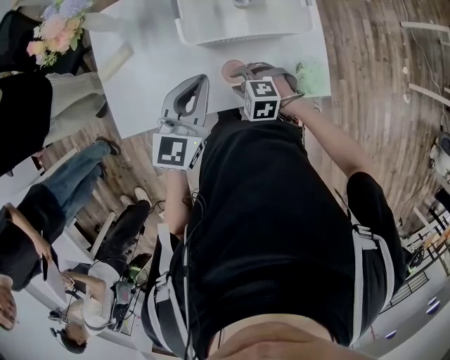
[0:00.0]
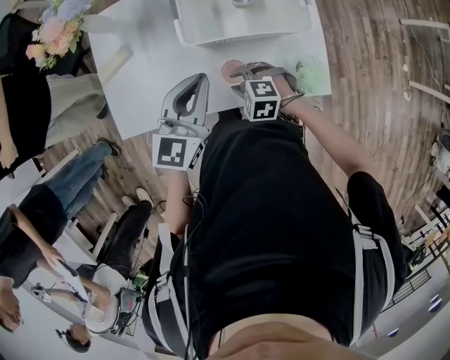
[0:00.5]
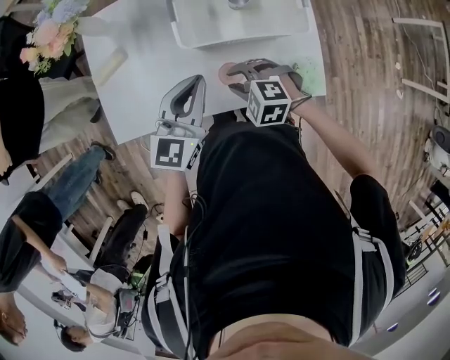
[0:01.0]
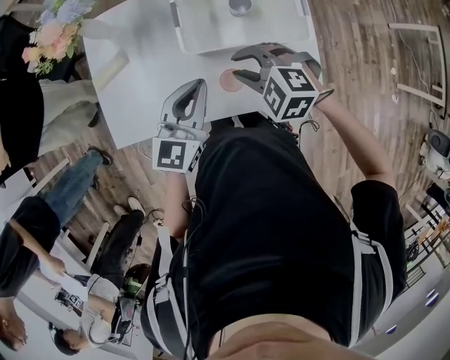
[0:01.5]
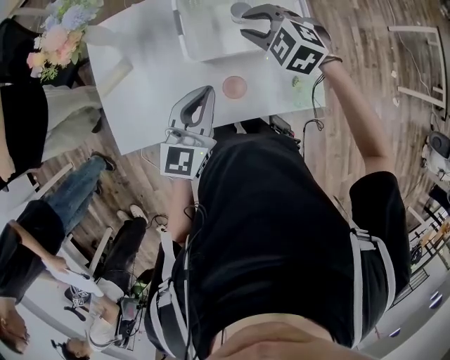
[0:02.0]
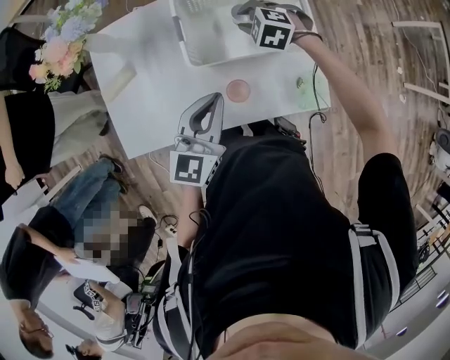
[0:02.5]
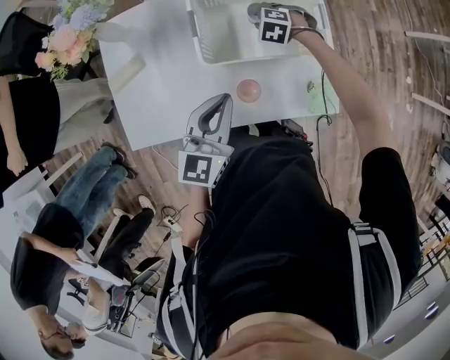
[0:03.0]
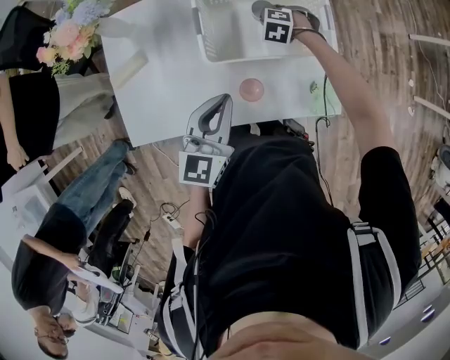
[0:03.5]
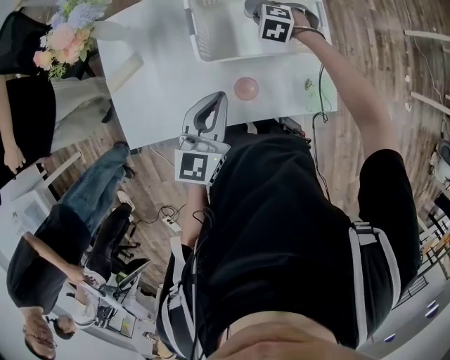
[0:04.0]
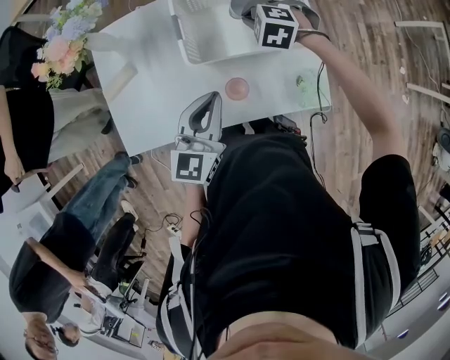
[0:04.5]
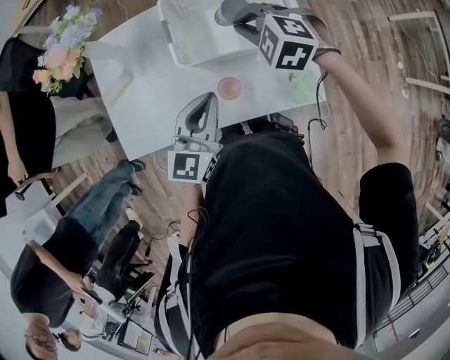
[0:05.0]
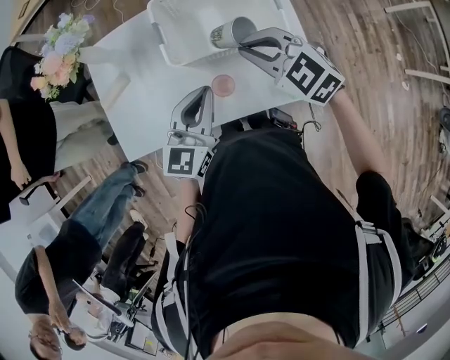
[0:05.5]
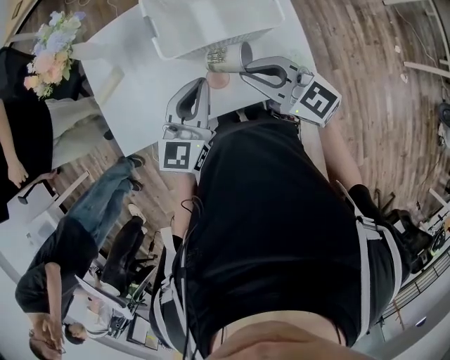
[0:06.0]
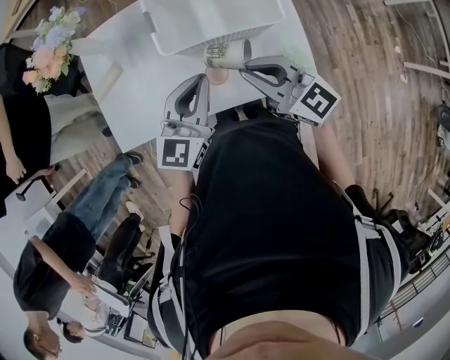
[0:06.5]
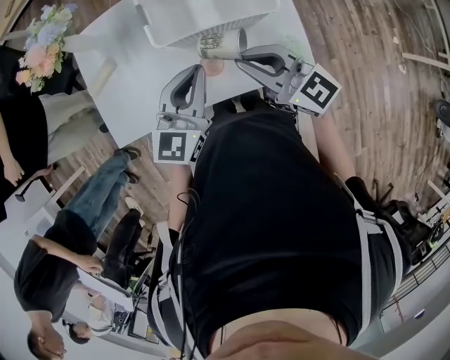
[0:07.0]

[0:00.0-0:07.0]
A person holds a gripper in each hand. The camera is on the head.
0:00.0 to 0:02.0: The right gripper goes about 25 cm forward, upward and to the right.
0:02.0 to 0:03.5: The right gripper travels downward by about 20 cm, swivels some 20 degrees, and closes its fingers.
0:03.5 to 0:05.0: The left gripper ends up approximately 5 cm from where it was. The right gripper heads upward, covering approximately 25 cm, and changes its angle by roughly 20 degrees.
0:05.0 to 0:07.0: The right gripper heads backward, covering approximately 15 cm, and angles its fingers upward, by about 50 degrees.

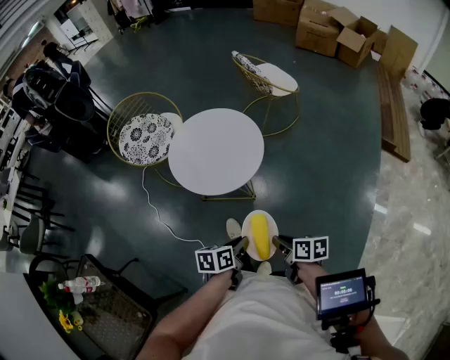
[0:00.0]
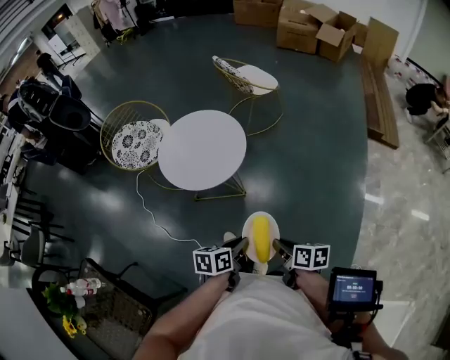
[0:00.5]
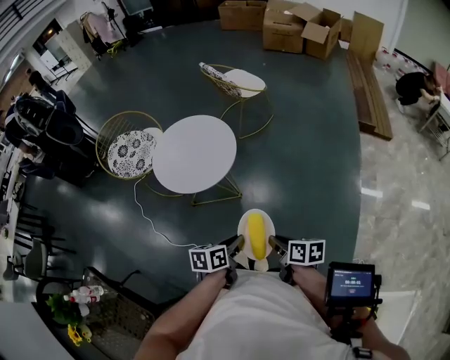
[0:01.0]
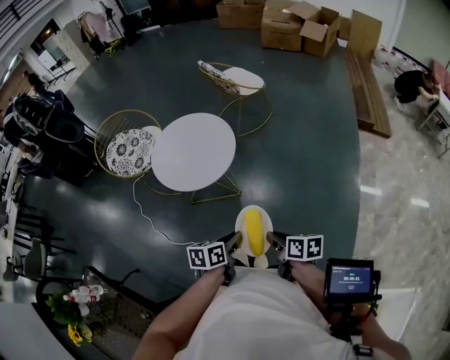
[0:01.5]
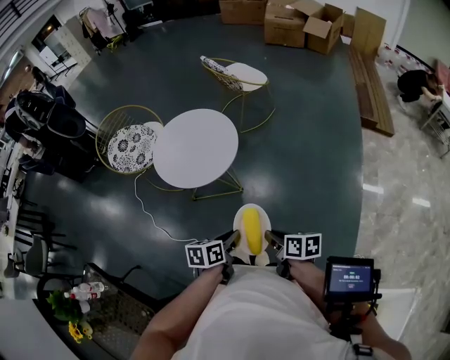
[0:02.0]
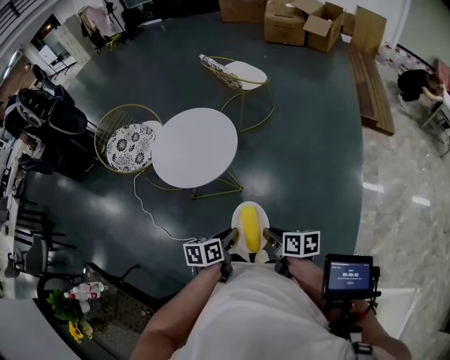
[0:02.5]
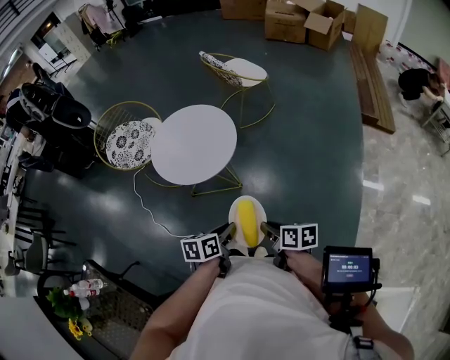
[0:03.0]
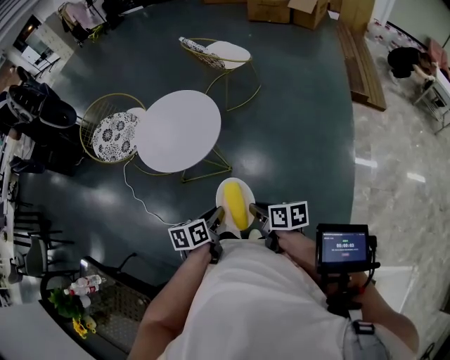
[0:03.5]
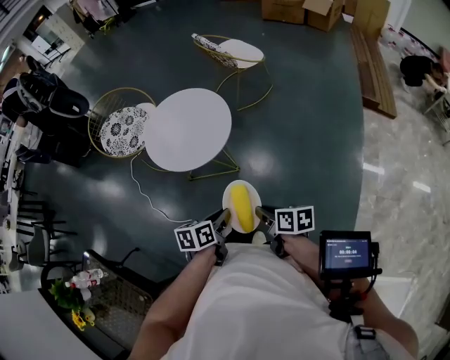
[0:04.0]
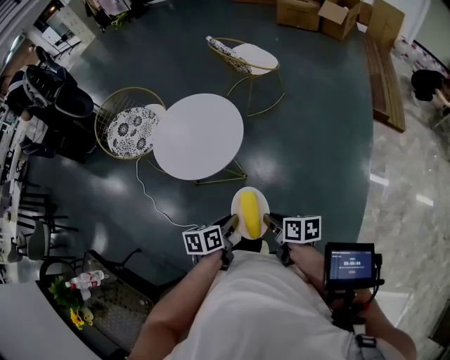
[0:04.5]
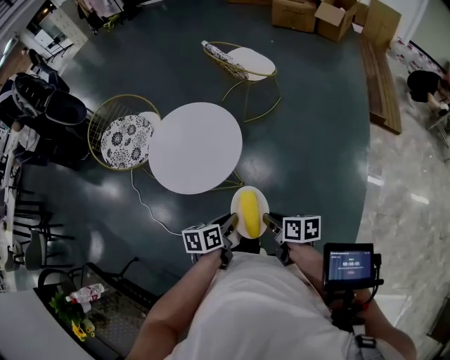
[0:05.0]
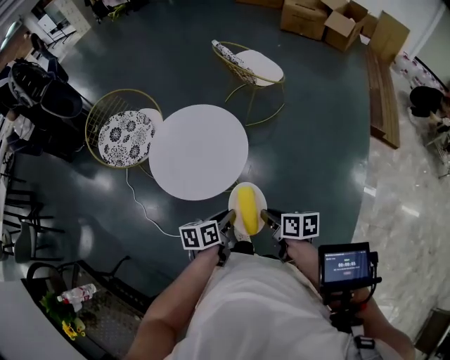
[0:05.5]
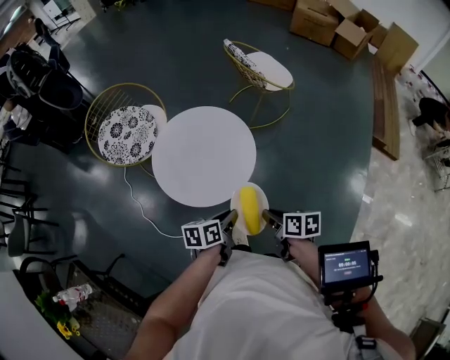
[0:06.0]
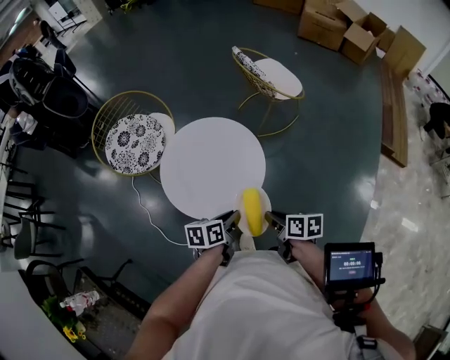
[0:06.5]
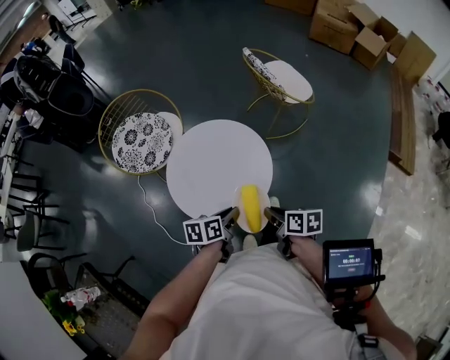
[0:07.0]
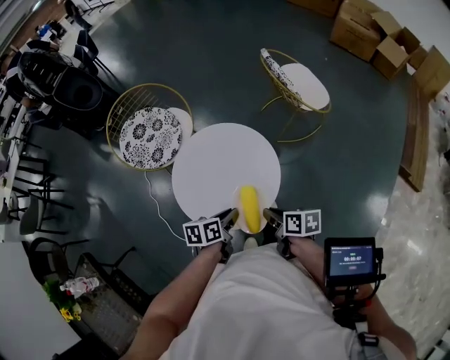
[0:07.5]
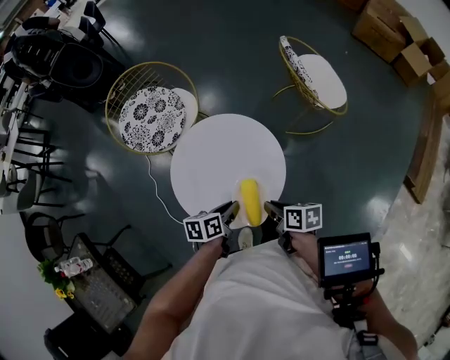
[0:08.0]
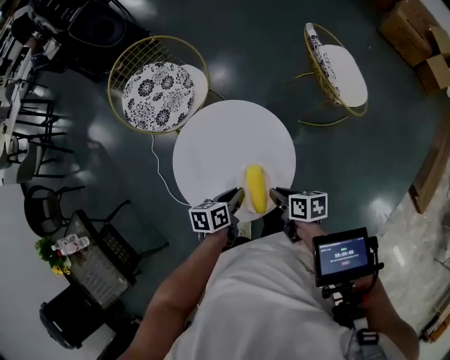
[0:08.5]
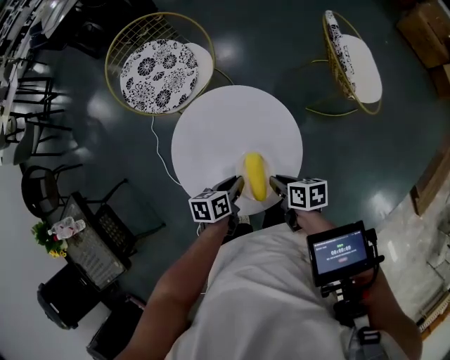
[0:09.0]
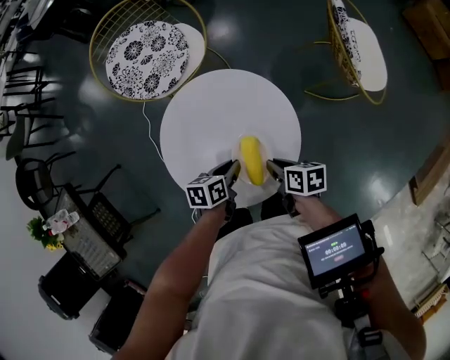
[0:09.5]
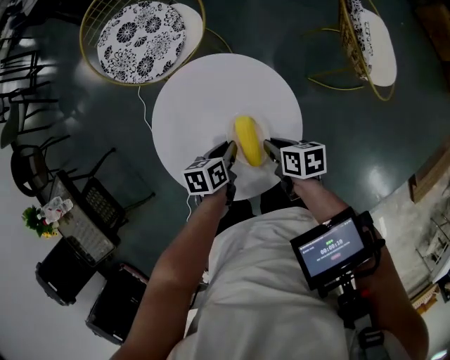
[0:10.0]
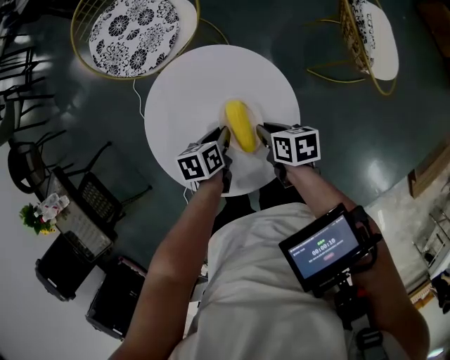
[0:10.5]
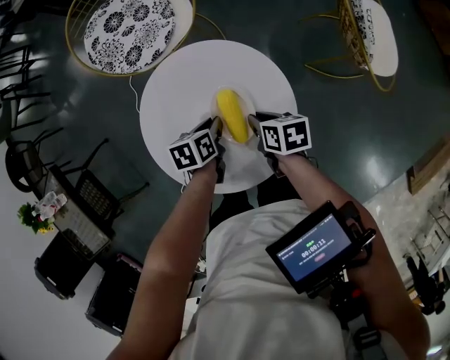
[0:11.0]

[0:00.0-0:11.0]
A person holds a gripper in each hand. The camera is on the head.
0:00.0 to 0:02.0: The two grippers go about 5 cm backward.
0:02.0 to 0:03.5: The grippers make only small movements.
0:03.5 to 0:05.5: The two grippers go roughly 20 cm forward.
0:05.5 to 0:07.5: Both grippers move forward, approximately 20 cm.
0:07.5 to 0:09.0: The left gripper goes roughly 10 cm downward and forward. The right gripper heads forward and downward, covering about 15 cm, and rotates approximately 20 degrees.
0:09.0 to 0:11.0: The grippers both shift forward and downward by some 10 cm.

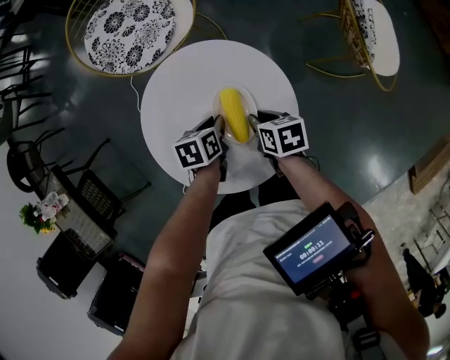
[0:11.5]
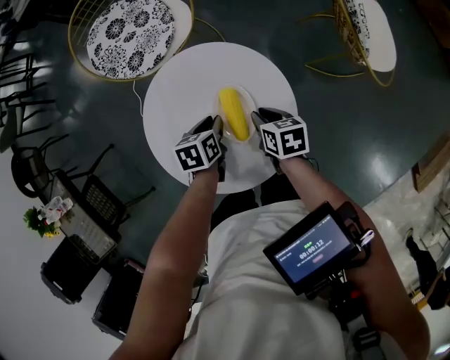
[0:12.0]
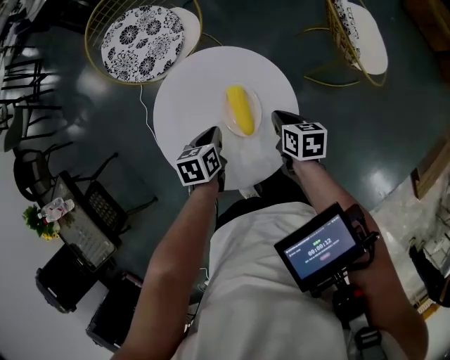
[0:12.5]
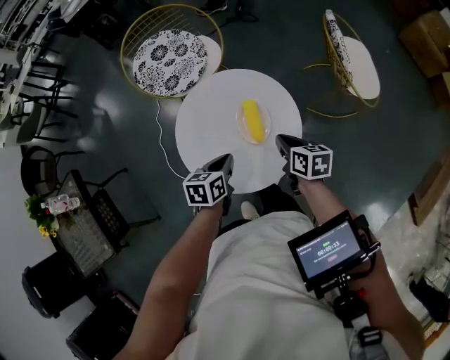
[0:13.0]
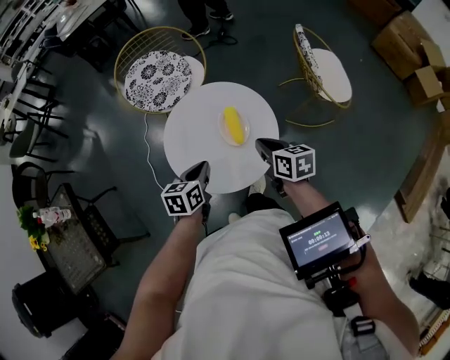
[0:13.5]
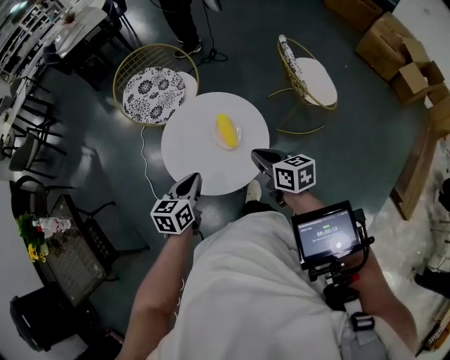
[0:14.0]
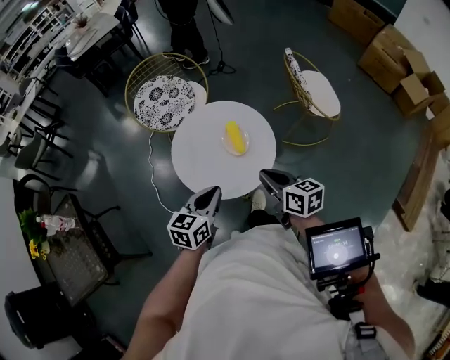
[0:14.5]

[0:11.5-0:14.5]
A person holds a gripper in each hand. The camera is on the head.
0:11.5 to 0:13.0: The left gripper shifts some 15 cm backward and upward; the right gripper heads upward and backward, covering roughly 15 cm, and turns by roughly 20 degrees.
0:13.0 to 0:14.5: The left gripper goes roughly 20 cm upward and backward, and turns by approximately 30 degrees. Meanwhile the right gripper travels backward and upward by some 20 cm.

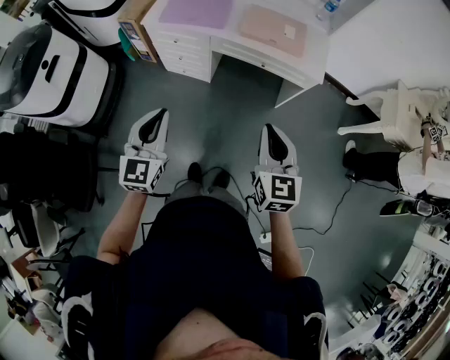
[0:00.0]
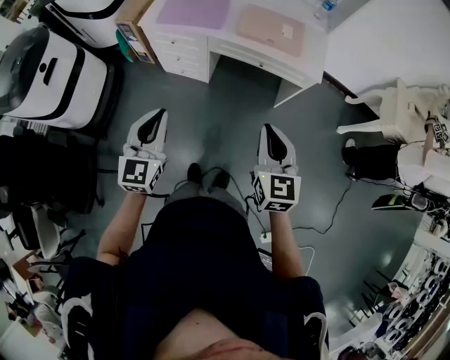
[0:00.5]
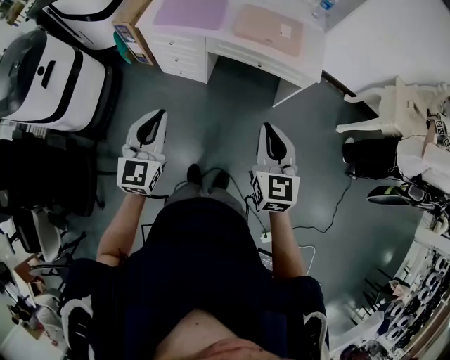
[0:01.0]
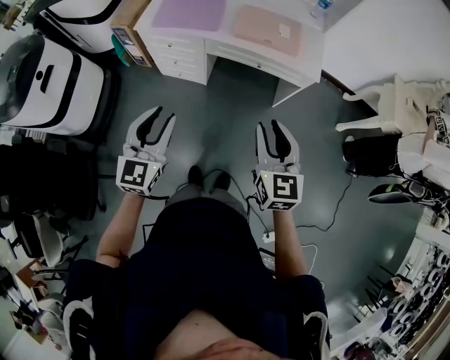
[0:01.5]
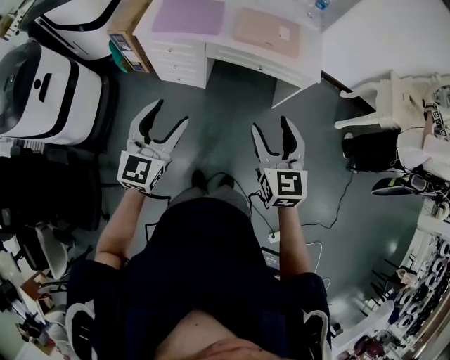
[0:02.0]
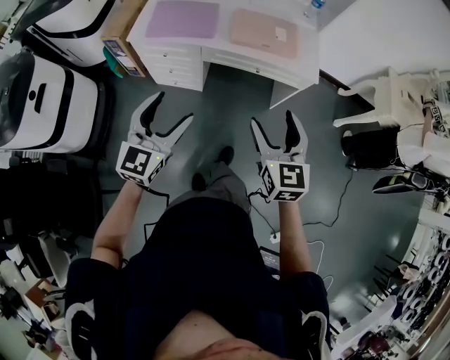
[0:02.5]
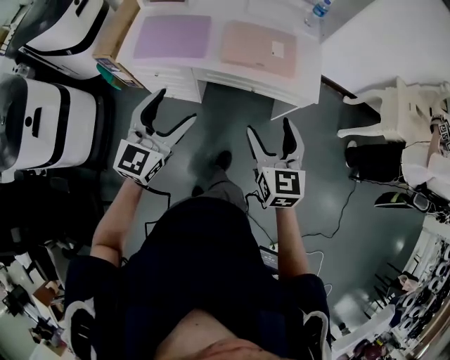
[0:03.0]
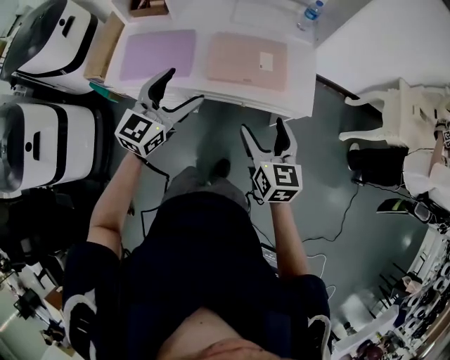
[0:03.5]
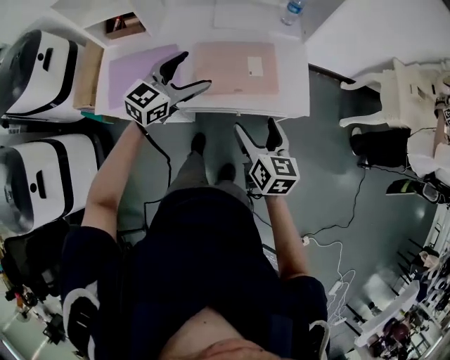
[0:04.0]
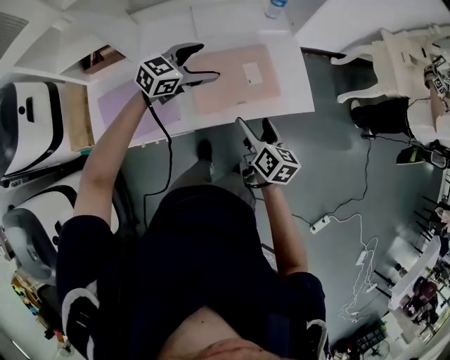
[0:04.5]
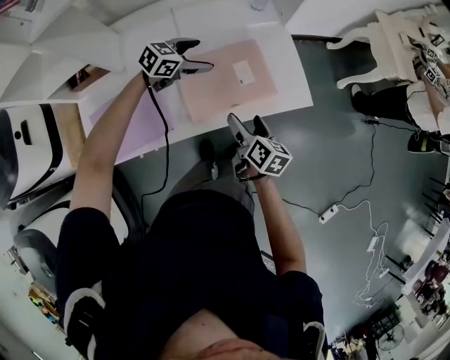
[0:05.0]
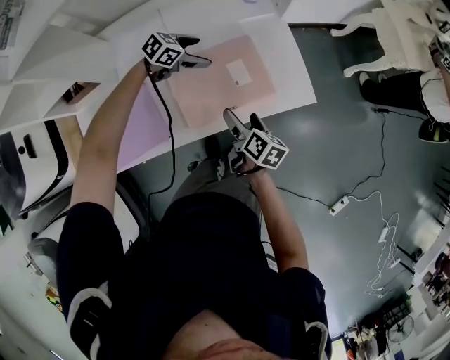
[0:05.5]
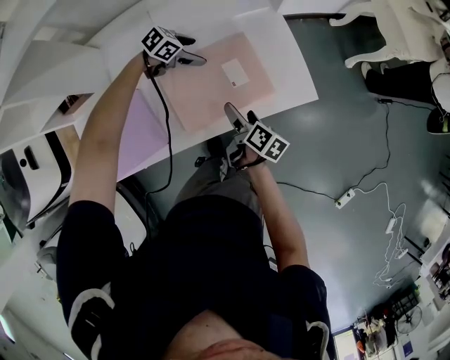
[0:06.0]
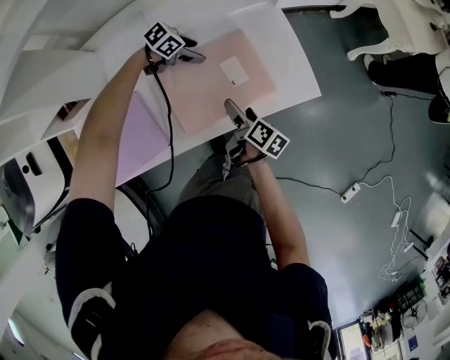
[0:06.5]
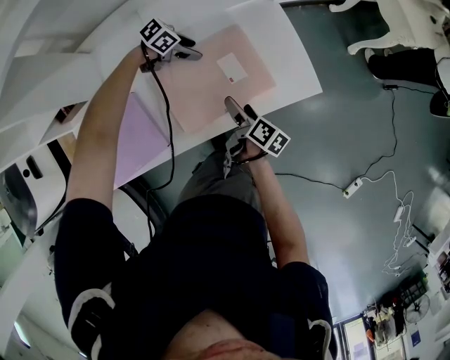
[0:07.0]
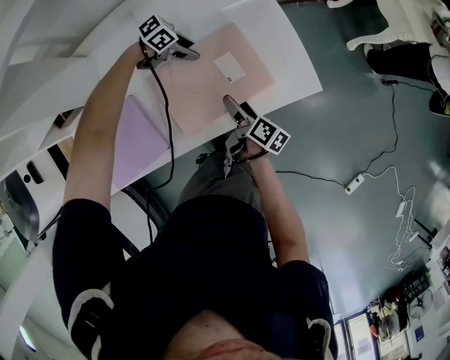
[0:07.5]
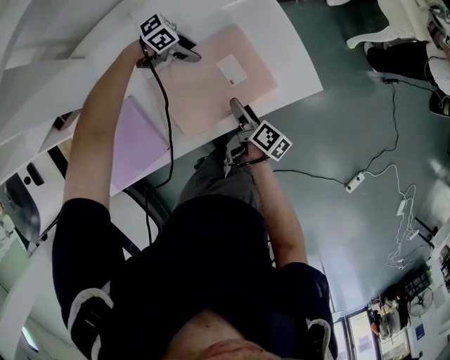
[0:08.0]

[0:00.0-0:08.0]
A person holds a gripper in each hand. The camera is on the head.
0:00.0 to 0:02.0: The left gripper opens. Meanwhile the right gripper opens up.
0:02.0 to 0:04.0: The two grippers go roughly 40 cm forward. The right gripper rotates about 30 degrees. The left gripper swivels some 30 degrees.
0:04.0 to 0:06.0: The two grippers go some 25 cm downward. The left gripper tips its fingers downward by roughly 30 degrees, while the right gripper rolls clockwise, seen from behind, by approximately 50 degrees.
0:06.0 to 0:08.0: The left gripper swivels roughly 20 degrees, and closes.
